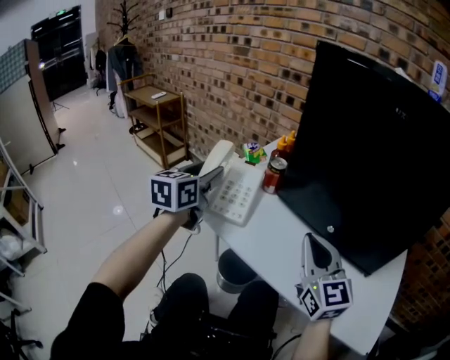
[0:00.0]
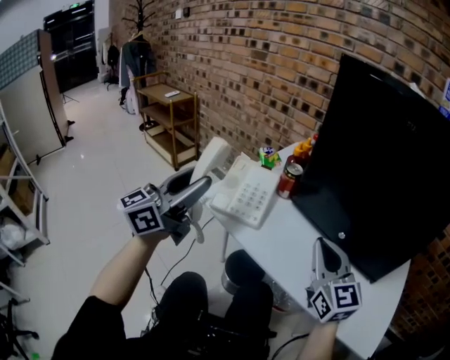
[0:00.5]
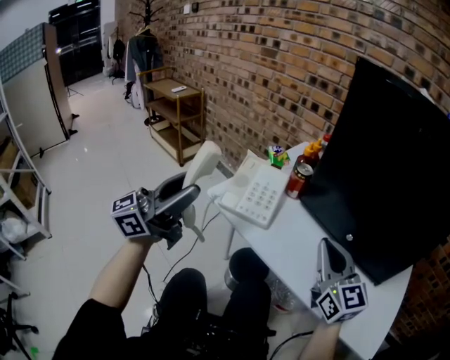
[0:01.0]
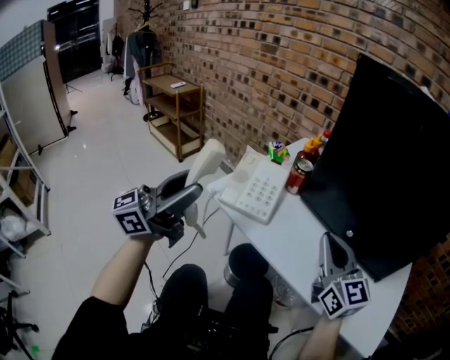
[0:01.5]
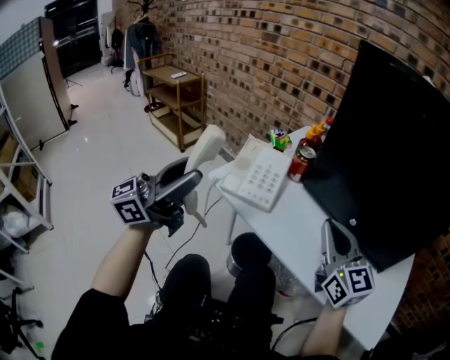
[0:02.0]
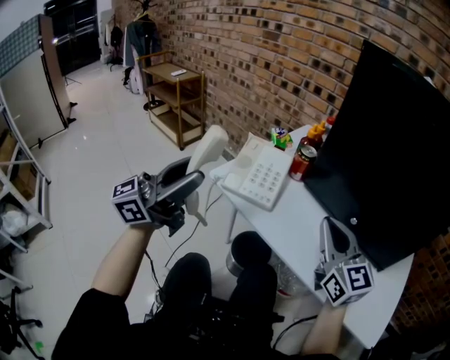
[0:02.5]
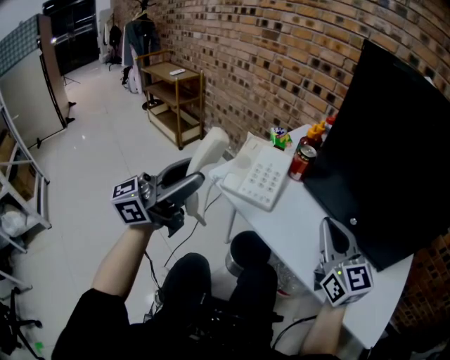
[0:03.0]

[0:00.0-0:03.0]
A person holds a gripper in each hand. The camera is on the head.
0:00.0 to 0:01.5: The left gripper shifts some 15 cm backward, and angles its fingers upward, by approximately 40 degrees.
0:01.5 to 0:03.0: There are only small adjustments of the grippers.

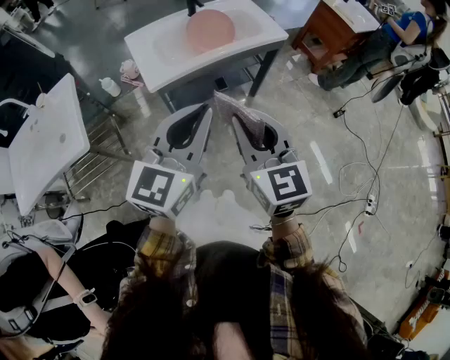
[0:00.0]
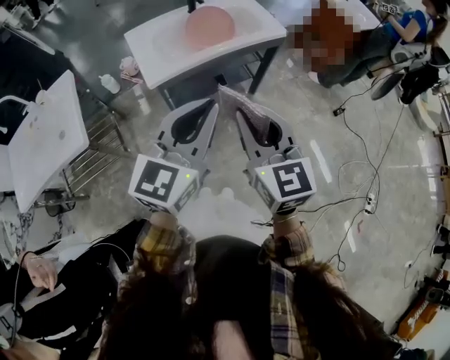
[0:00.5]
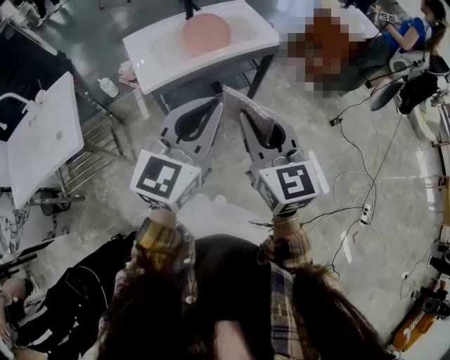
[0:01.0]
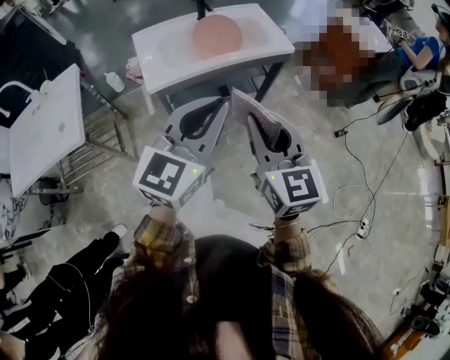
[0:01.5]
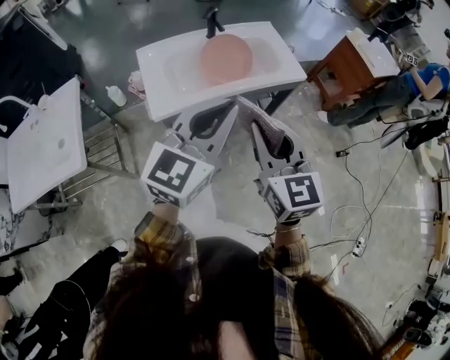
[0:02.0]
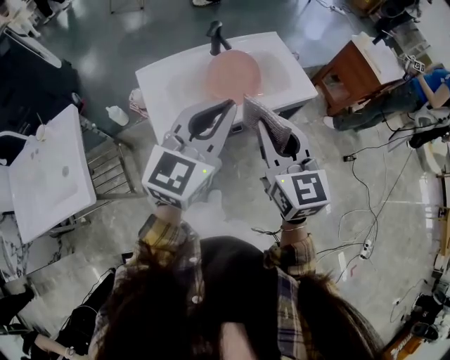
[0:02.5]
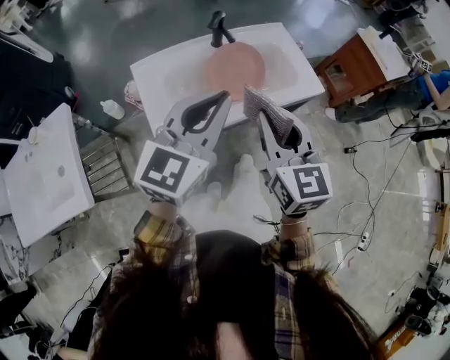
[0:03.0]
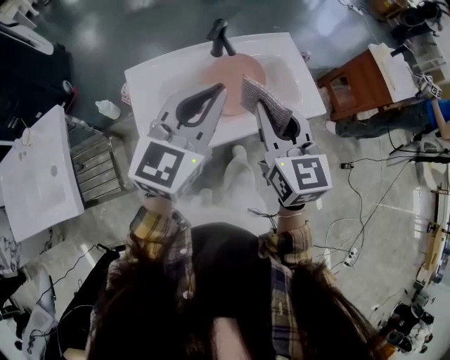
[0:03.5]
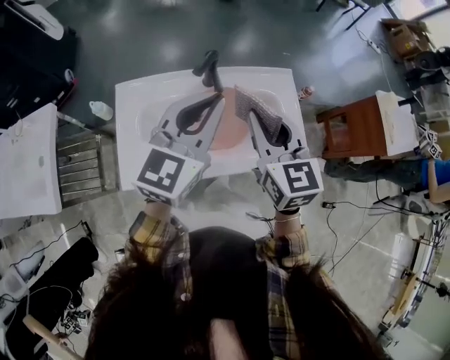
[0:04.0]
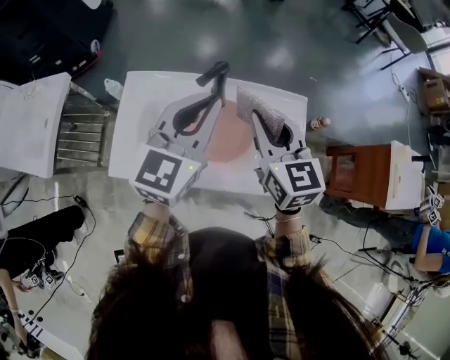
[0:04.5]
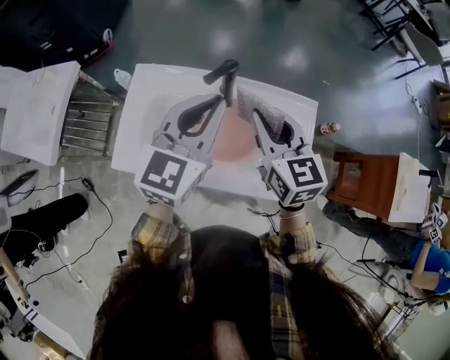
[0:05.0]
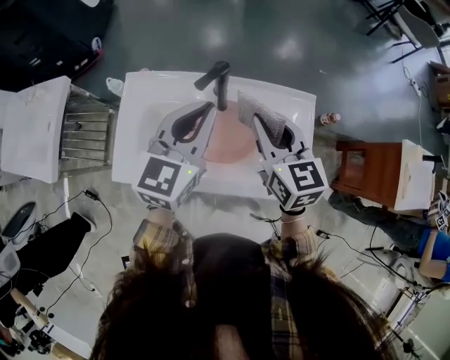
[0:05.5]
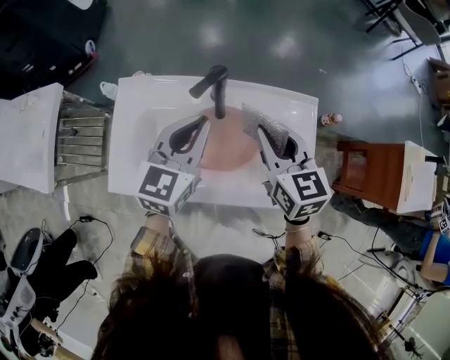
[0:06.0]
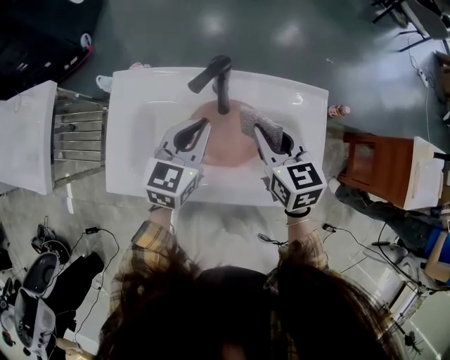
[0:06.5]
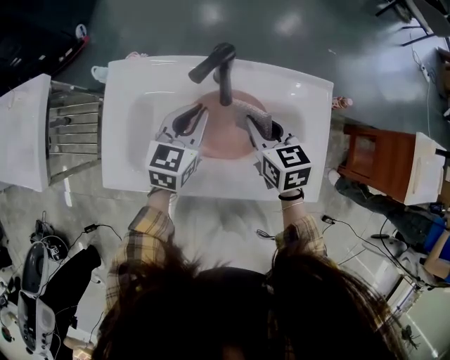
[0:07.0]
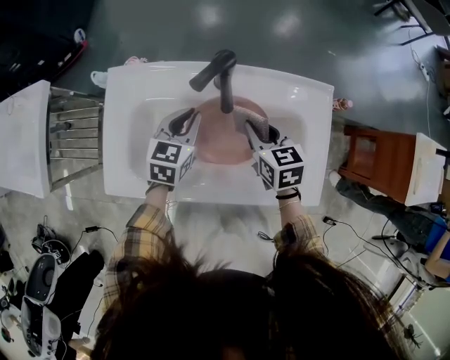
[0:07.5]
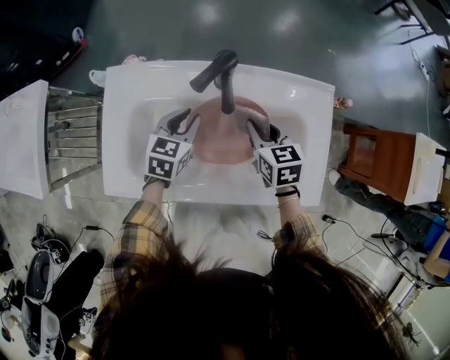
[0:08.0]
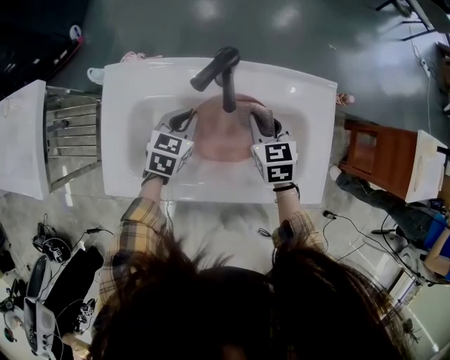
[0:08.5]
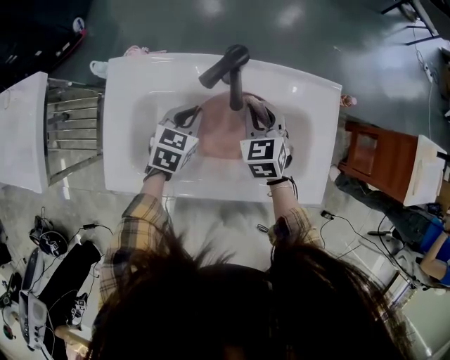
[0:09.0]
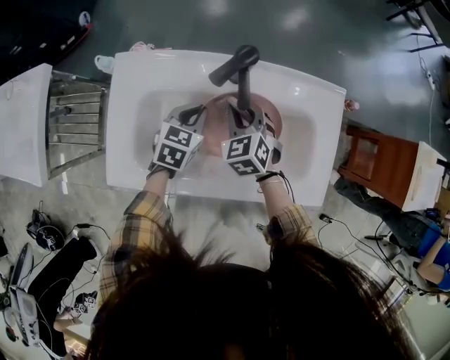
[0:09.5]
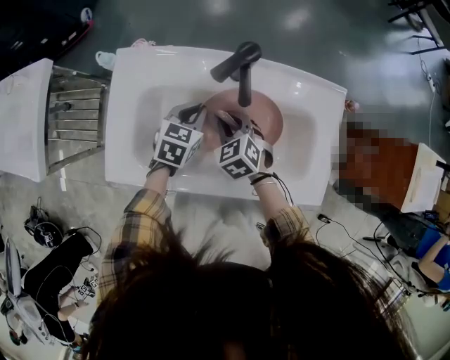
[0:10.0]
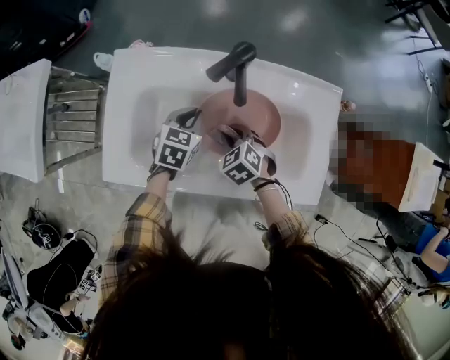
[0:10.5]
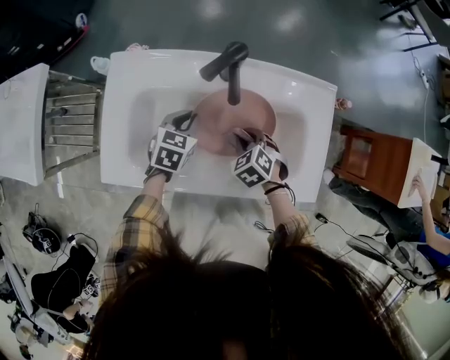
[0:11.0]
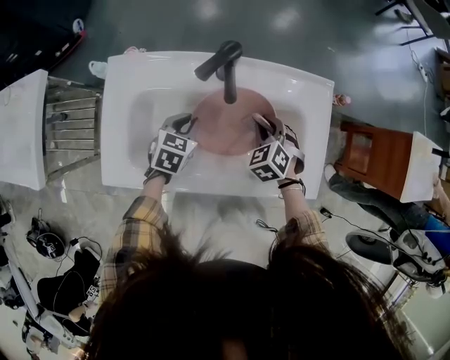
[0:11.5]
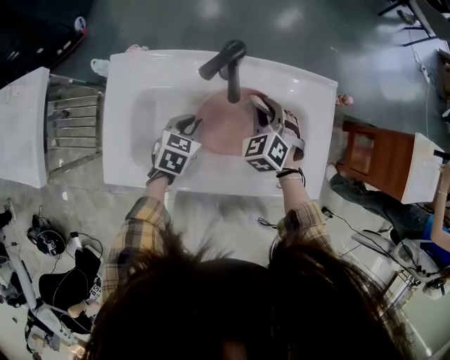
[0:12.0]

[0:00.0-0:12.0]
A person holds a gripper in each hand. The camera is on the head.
0:00.0 to 0:02.0: Both grippers travel together forward, roughly 15 cm.
0:02.0 to 0:04.0: Both grippers move forward, approximately 35 cm.
0:04.0 to 0:06.0: The left gripper goes roughly 15 cm downward and forward, and changes its angle by some 20 degrees. Meanwhile the right gripper shifts some 15 cm forward, downward and to the right.
0:06.0 to 0:08.0: The grippers both shift downward by roughly 20 cm. The left gripper turns by roughly 20 degrees.
0:08.0 to 0:10.0: The right gripper shifts approximately 10 cm to the left and downward, and changes its angle by about 30 degrees.
0:10.0 to 0:12.0: The right gripper heads to the right and forward, covering about 10 cm, and turns by some 20 degrees.

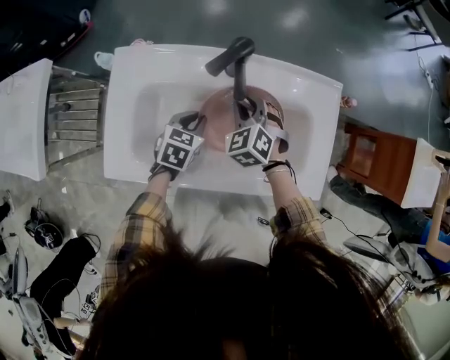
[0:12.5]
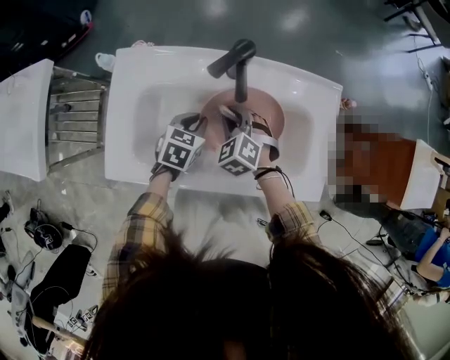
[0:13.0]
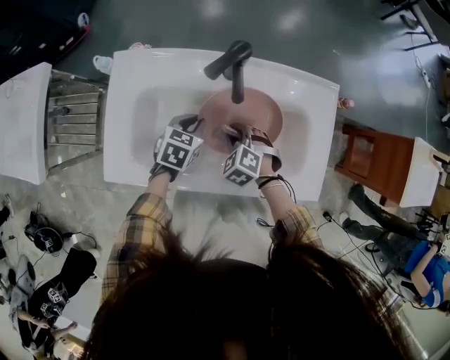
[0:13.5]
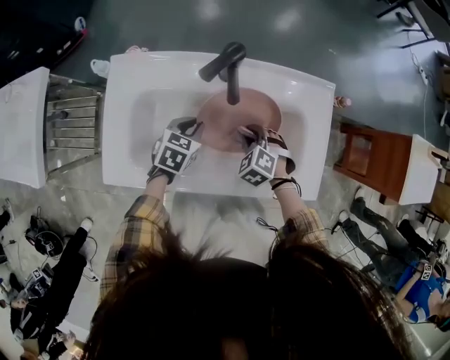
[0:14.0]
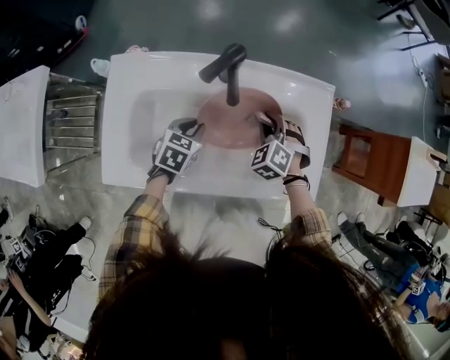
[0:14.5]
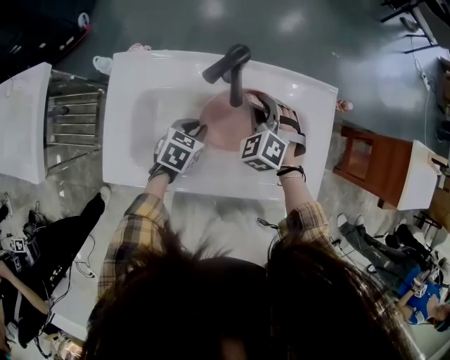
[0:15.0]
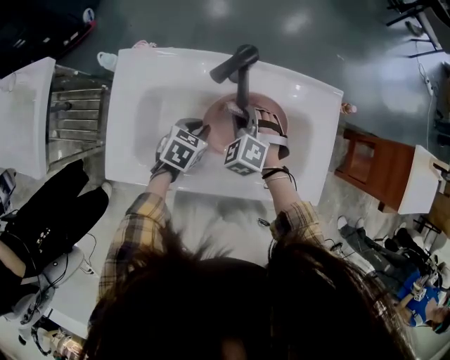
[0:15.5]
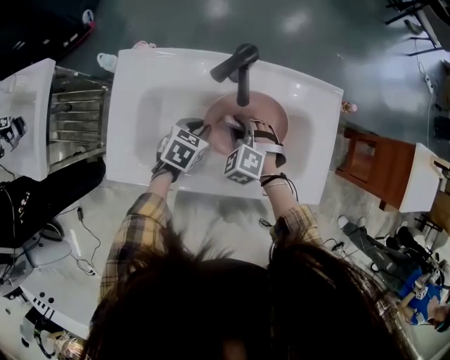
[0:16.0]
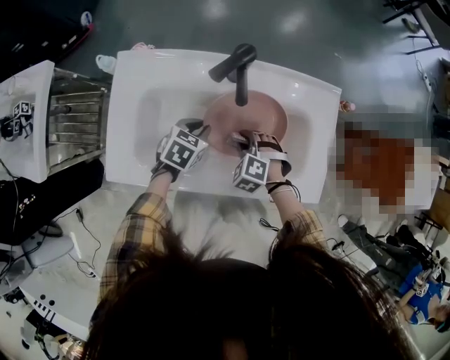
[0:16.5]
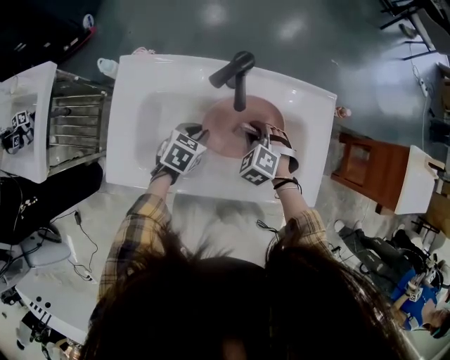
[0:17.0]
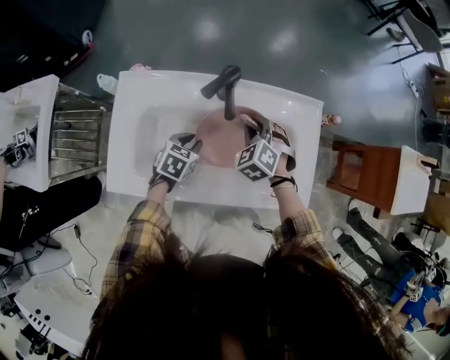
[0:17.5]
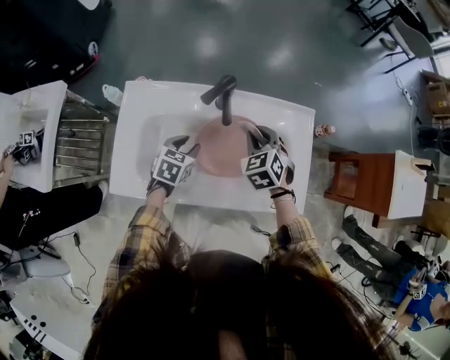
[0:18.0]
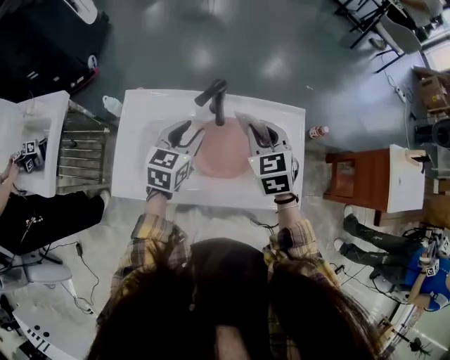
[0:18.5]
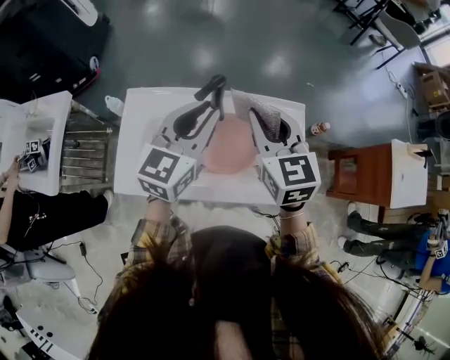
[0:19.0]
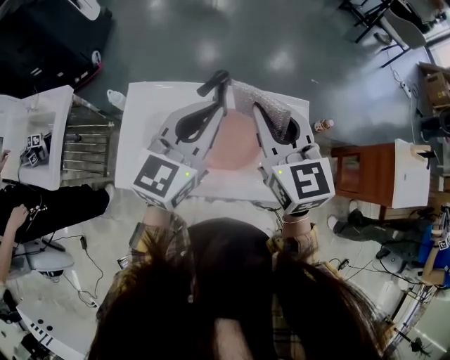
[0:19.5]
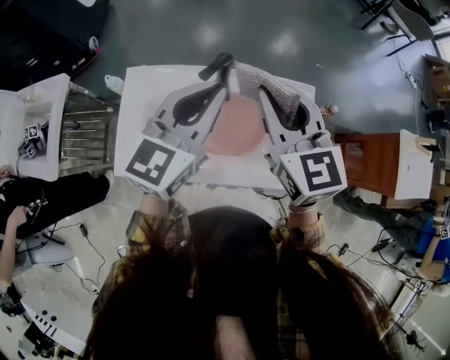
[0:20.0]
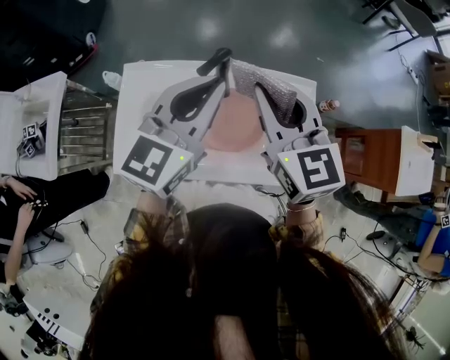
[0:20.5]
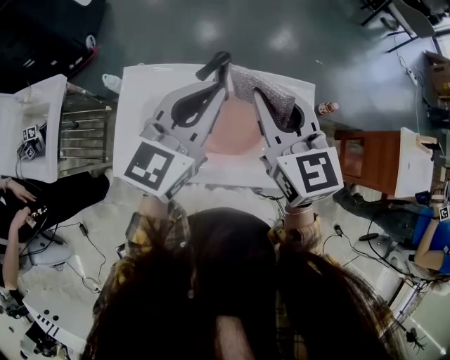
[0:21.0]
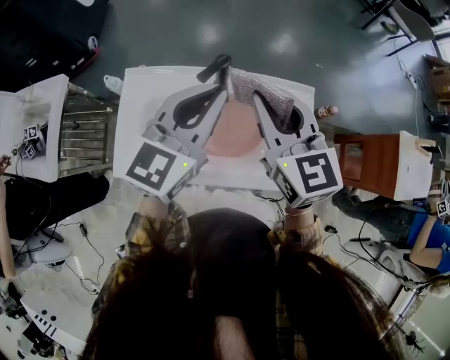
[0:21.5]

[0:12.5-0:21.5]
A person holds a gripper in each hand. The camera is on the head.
0:12.5 to 0:14.5: The right gripper goes about 10 cm to the right.
0:14.5 to 0:17.0: The right gripper travels backward and back again, some 10 cm each way.
0:17.0 to 0:19.5: Both grippers move upward, about 40 cm. The right gripper points its fingers approximately 50 degrees further upward; the left gripper points its fingers roughly 50 degrees further upward, and opens, then closes again.
0:19.5 to 0:21.5: The grippers make only small movements.

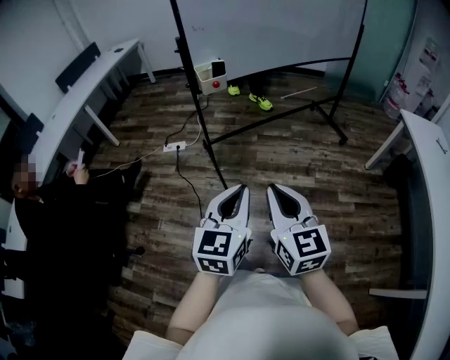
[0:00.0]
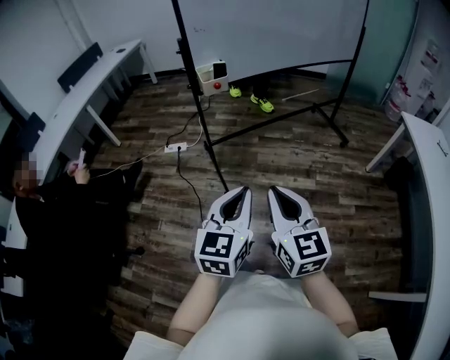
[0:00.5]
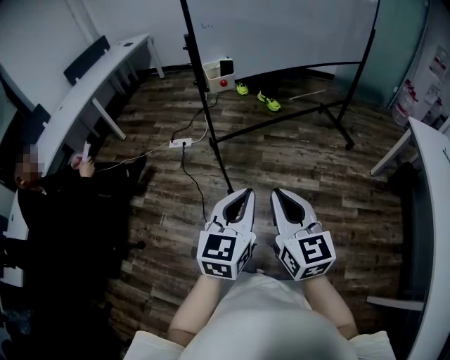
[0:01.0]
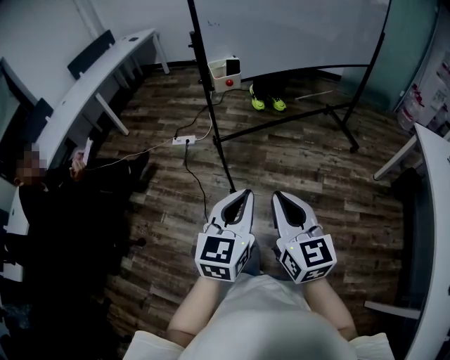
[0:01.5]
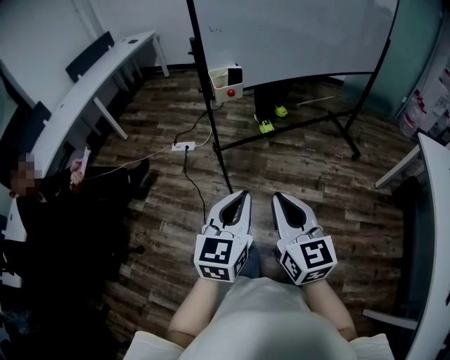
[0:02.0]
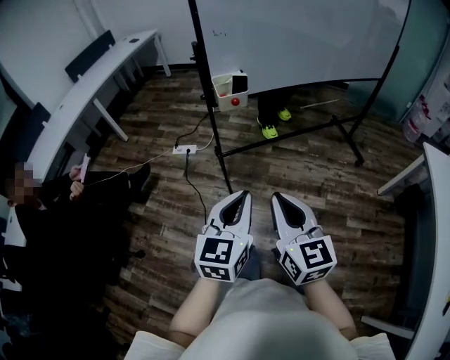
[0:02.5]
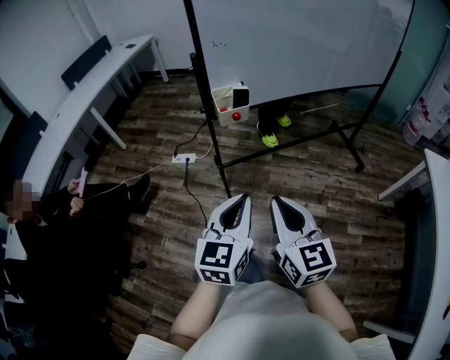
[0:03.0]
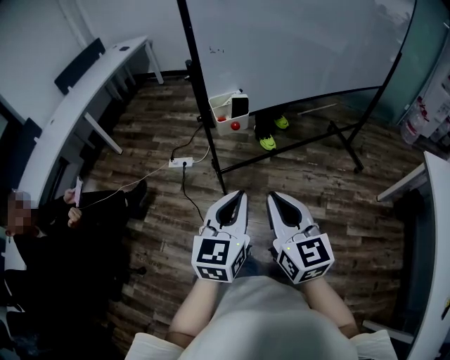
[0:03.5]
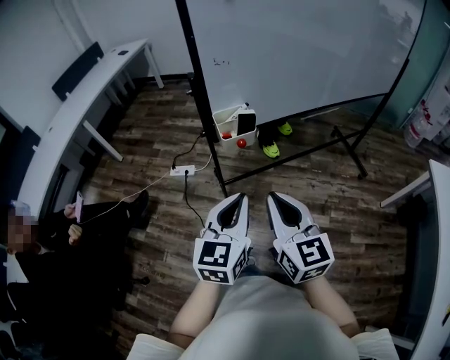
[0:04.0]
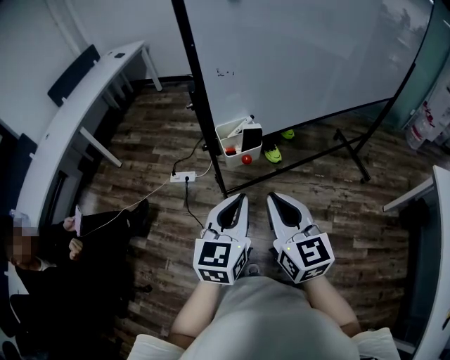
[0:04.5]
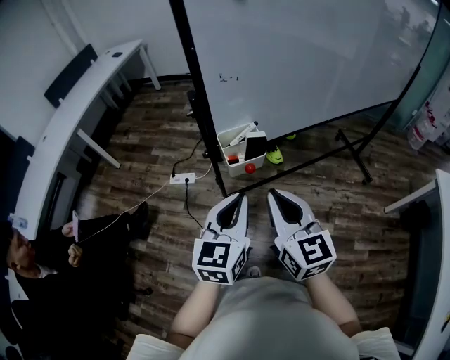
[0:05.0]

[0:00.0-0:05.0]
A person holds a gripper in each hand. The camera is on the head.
0:00.0 to 0:02.5: The two grippers go about 15 cm forward.
0:02.5 to 0:05.0: The two grippers go some 30 cm forward.
